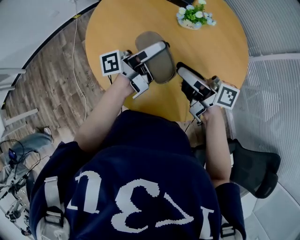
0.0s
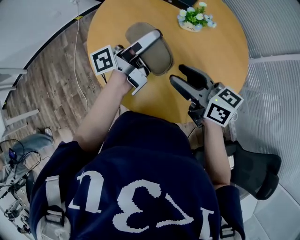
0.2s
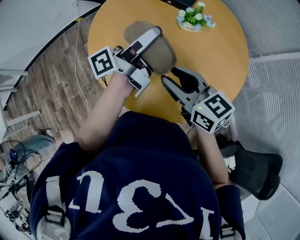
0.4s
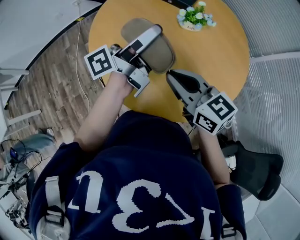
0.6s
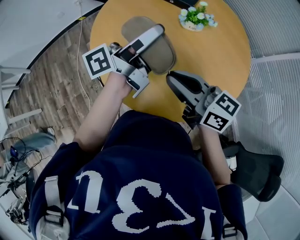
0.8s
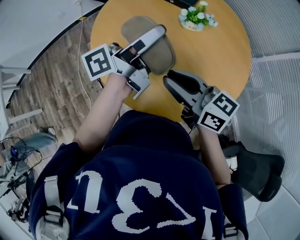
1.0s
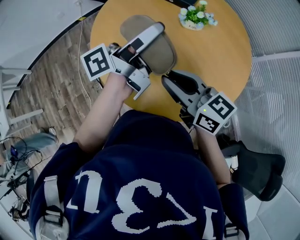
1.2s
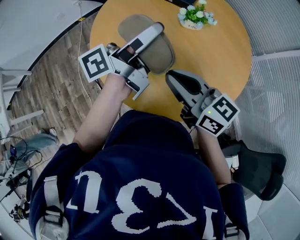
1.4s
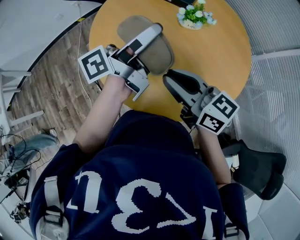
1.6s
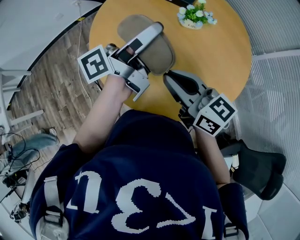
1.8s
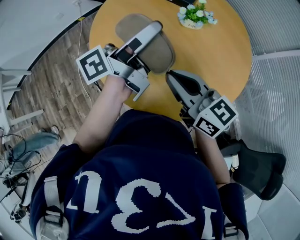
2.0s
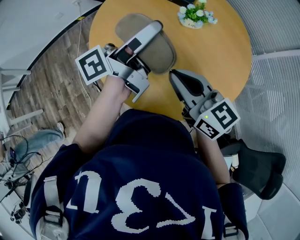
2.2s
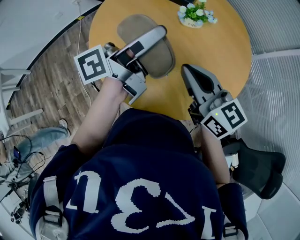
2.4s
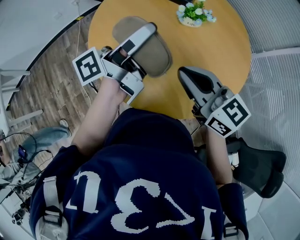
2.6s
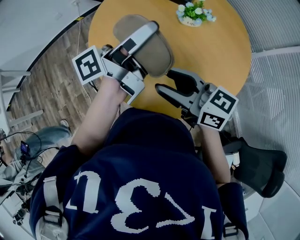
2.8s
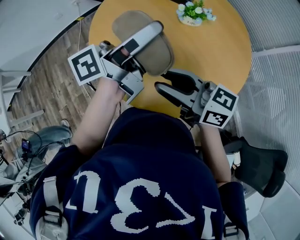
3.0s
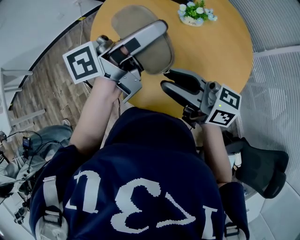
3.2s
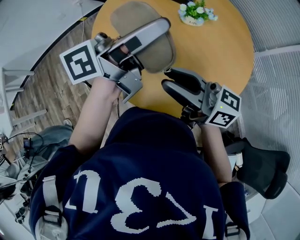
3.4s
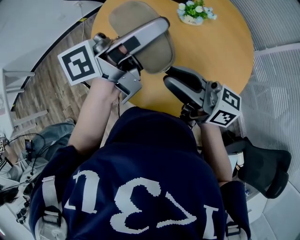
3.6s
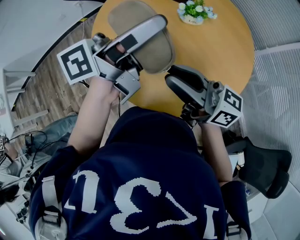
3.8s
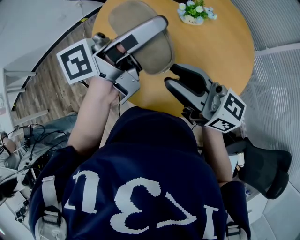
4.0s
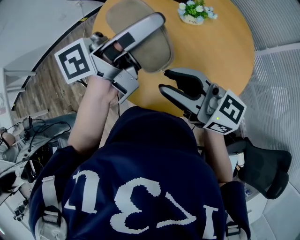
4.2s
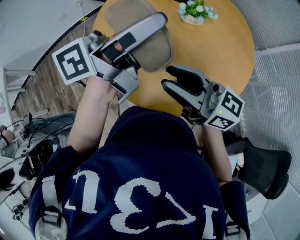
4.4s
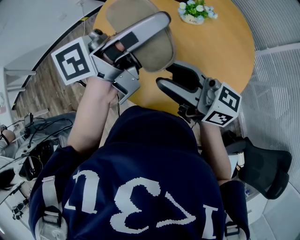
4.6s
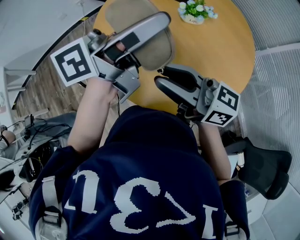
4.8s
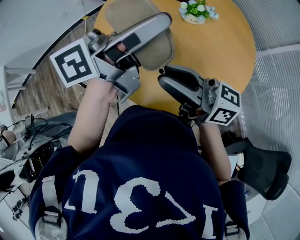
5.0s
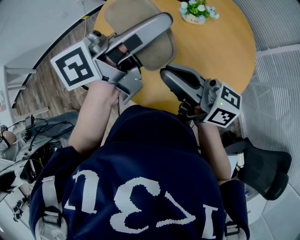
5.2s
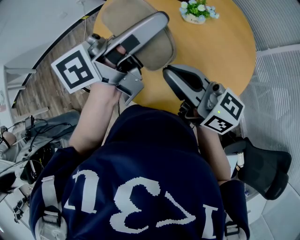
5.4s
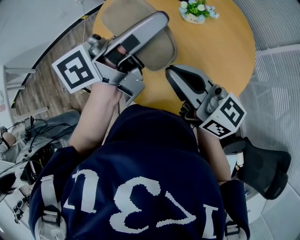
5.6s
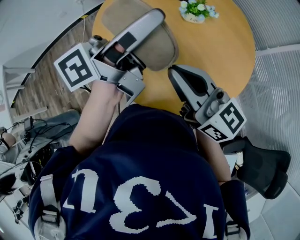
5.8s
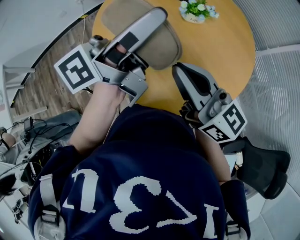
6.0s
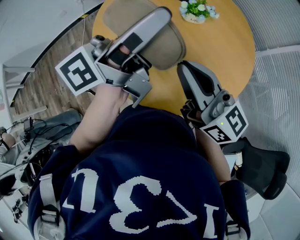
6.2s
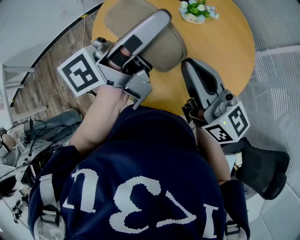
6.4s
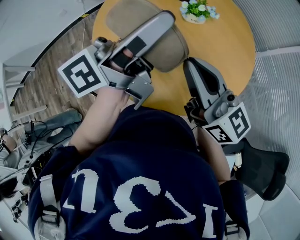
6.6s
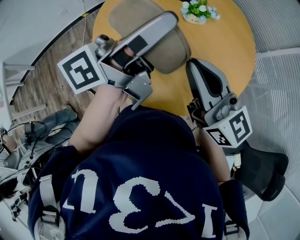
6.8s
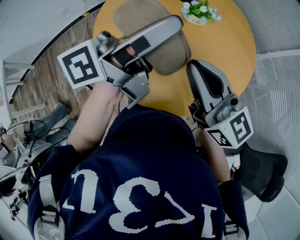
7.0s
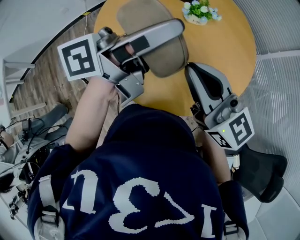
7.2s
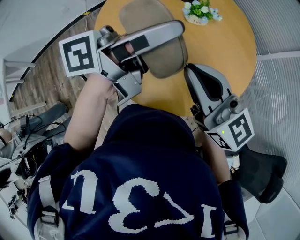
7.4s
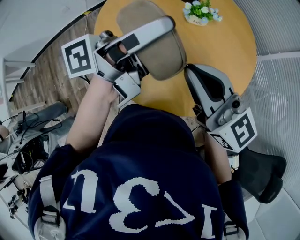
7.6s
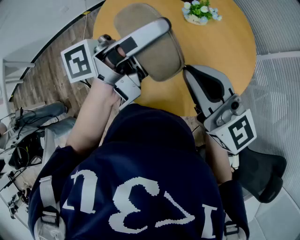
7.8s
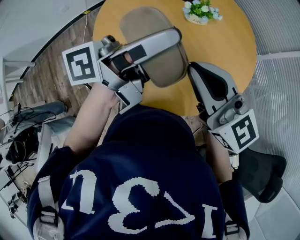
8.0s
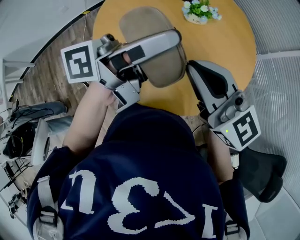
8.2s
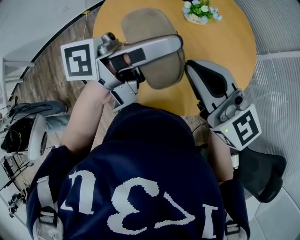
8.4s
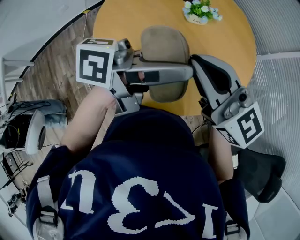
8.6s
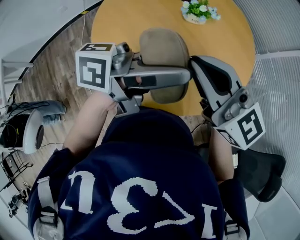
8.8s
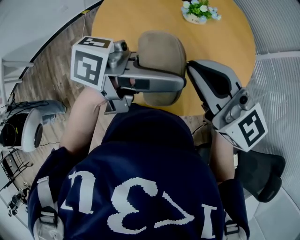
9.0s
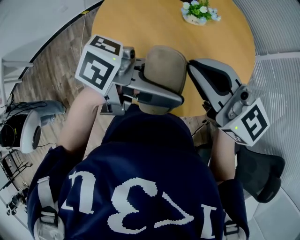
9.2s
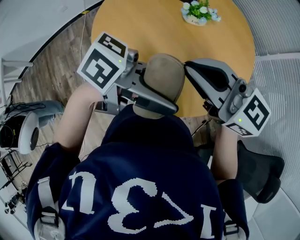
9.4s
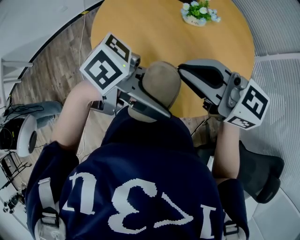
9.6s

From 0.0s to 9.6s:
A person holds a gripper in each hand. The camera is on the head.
From 0.0s to 1.6s: The right gripper changes place by approximately 10 cm, swivels some 40 degrees, and closes its fingers; the left gripper heads upward, covering approximately 10 cm.
From 1.6s to 3.2s: The left gripper ends up roughly 5 cm from where it was.
From 3.2s to 4.8s: The grippers move only a little.
From 4.8s to 6.4s: The right gripper changes place by about 5 cm, rotates roughly 30 degrees, and closes its fingers.
From 6.4s to 8.0s: The right gripper rotates about 20 degrees.
From 8.0s to 9.6s: The right gripper turns by approximately 30 degrees. The left gripper changes place by approximately 15 cm, and swivels approximately 60 degrees.

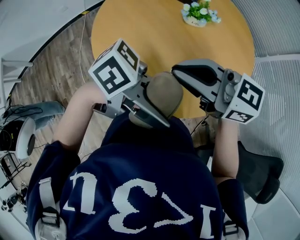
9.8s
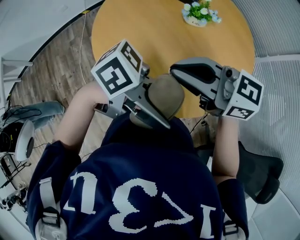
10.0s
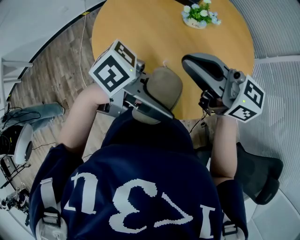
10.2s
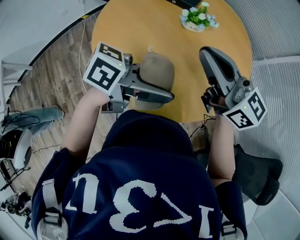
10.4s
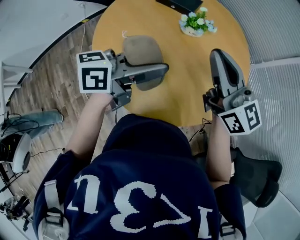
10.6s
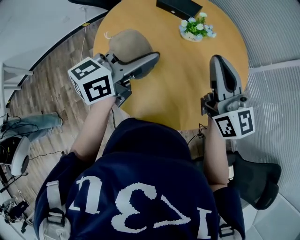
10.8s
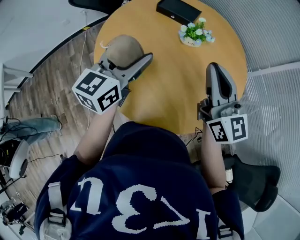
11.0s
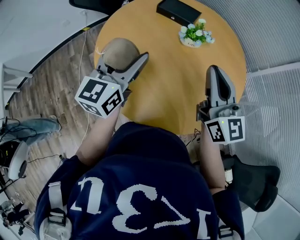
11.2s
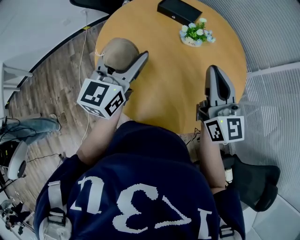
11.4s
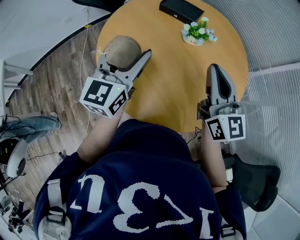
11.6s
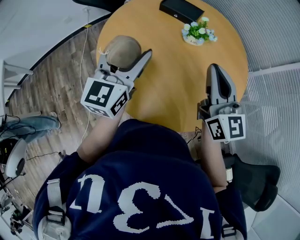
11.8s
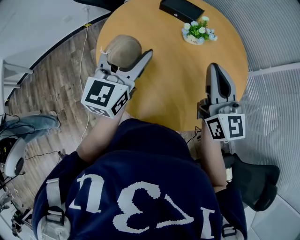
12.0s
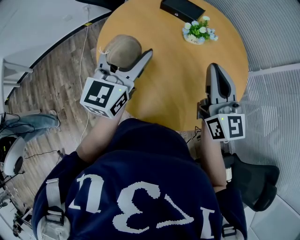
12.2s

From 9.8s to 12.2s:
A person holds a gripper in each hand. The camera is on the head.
From 9.8s to 11.0s: The left gripper shifts by some 25 cm, and rotates approximately 90 degrees. Meanwhile the right gripper shifts by approximately 10 cm, and rotates some 50 degrees.
From 11.0s to 12.2s: The grippers move only a little.

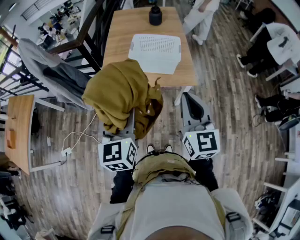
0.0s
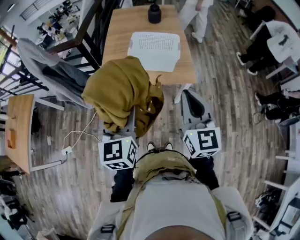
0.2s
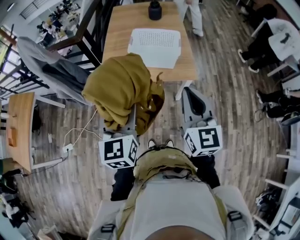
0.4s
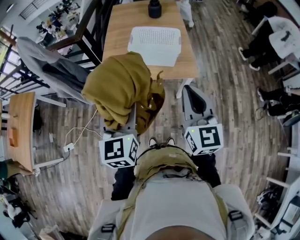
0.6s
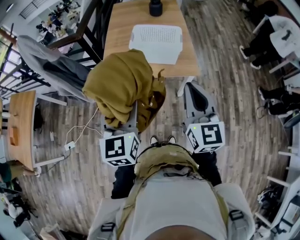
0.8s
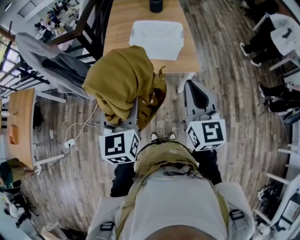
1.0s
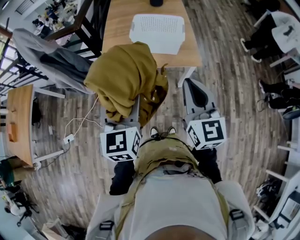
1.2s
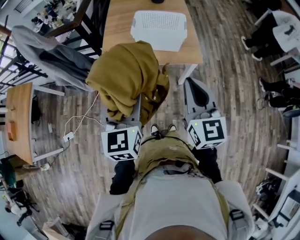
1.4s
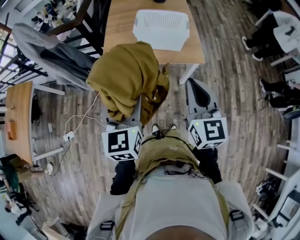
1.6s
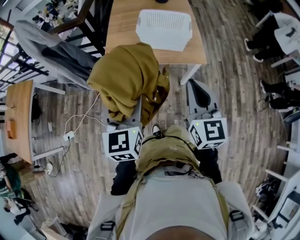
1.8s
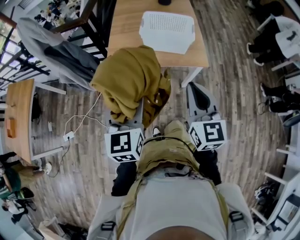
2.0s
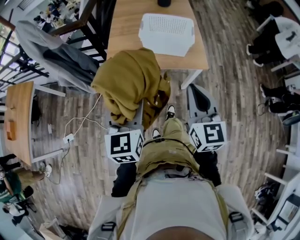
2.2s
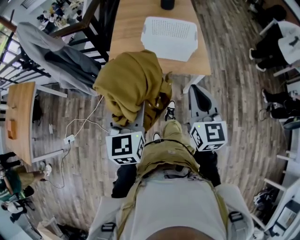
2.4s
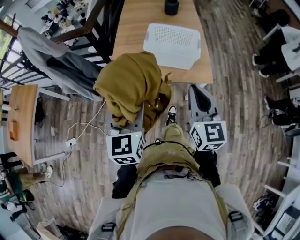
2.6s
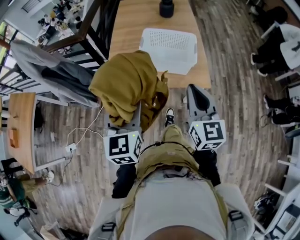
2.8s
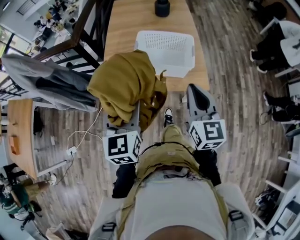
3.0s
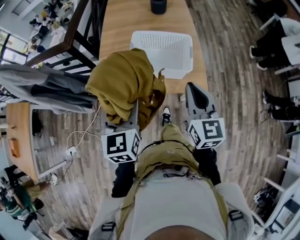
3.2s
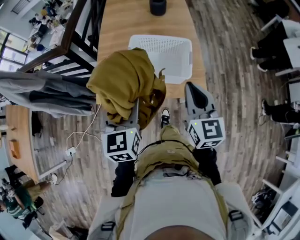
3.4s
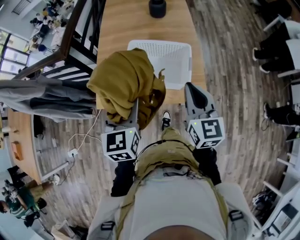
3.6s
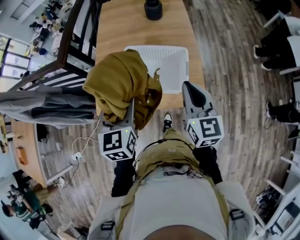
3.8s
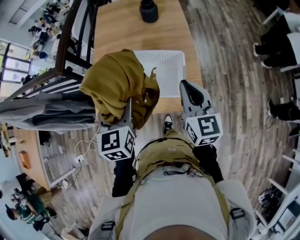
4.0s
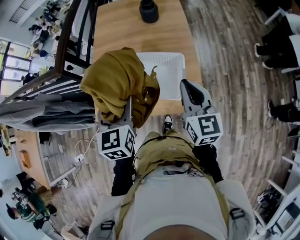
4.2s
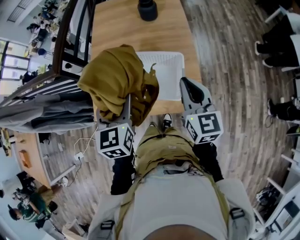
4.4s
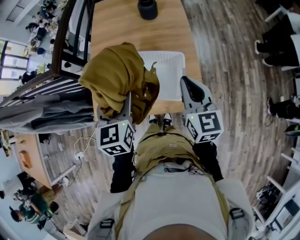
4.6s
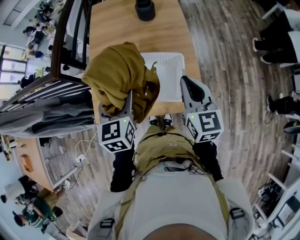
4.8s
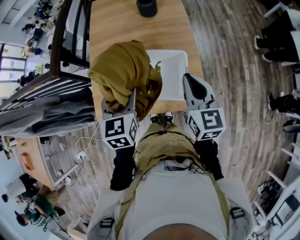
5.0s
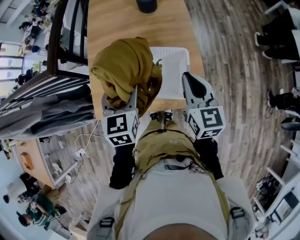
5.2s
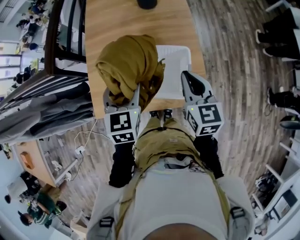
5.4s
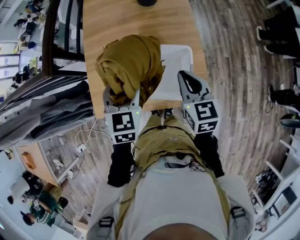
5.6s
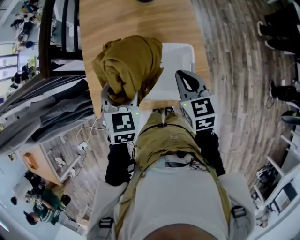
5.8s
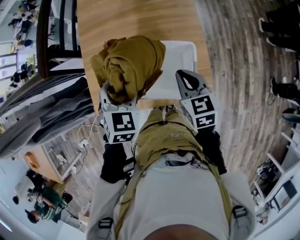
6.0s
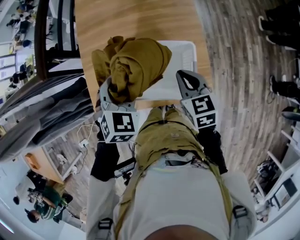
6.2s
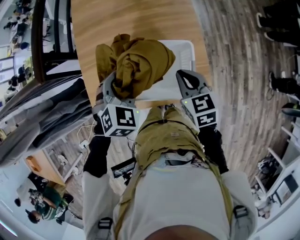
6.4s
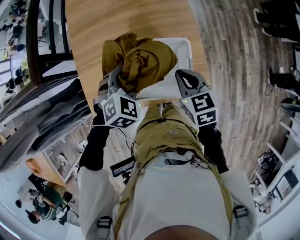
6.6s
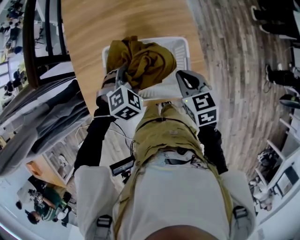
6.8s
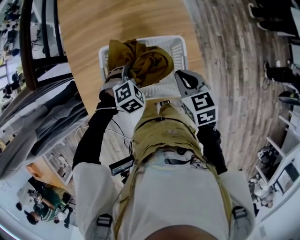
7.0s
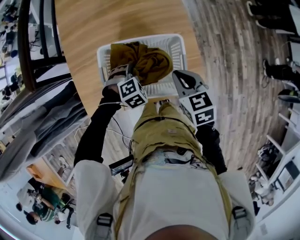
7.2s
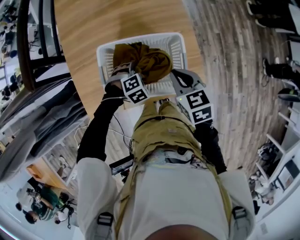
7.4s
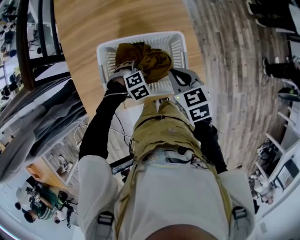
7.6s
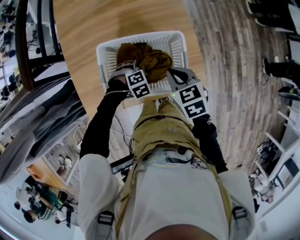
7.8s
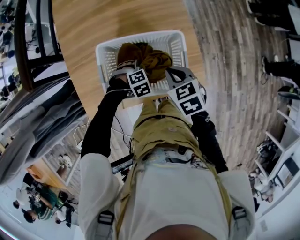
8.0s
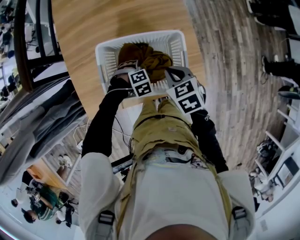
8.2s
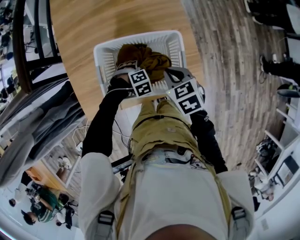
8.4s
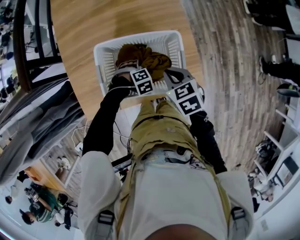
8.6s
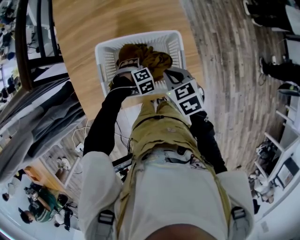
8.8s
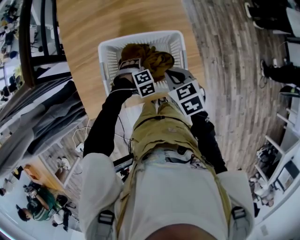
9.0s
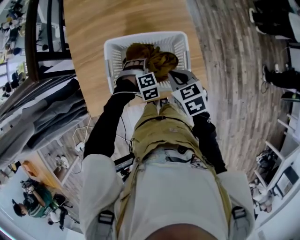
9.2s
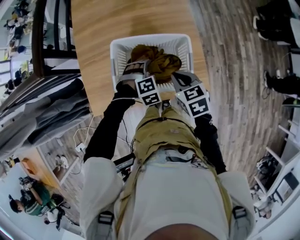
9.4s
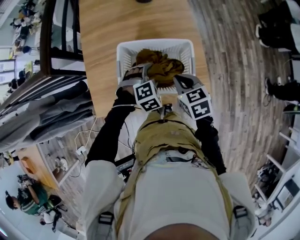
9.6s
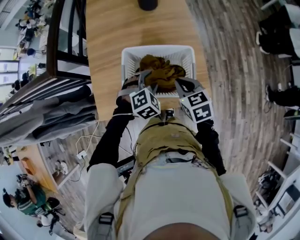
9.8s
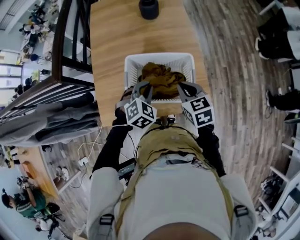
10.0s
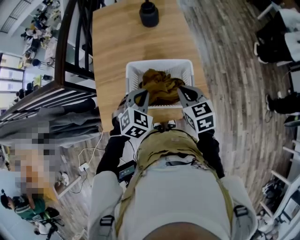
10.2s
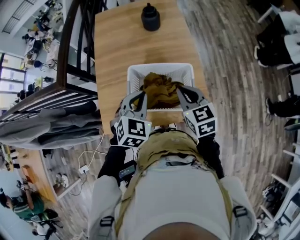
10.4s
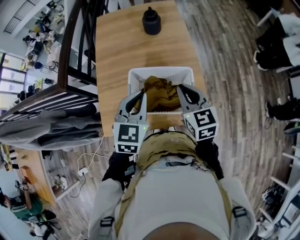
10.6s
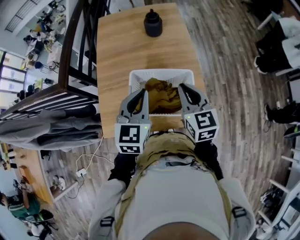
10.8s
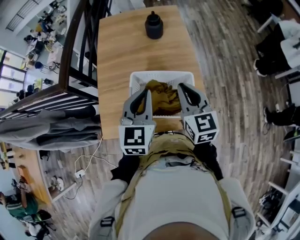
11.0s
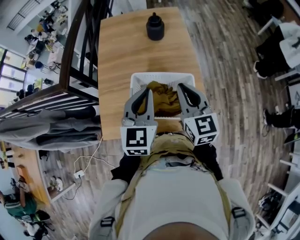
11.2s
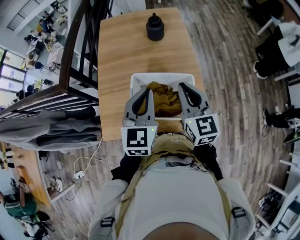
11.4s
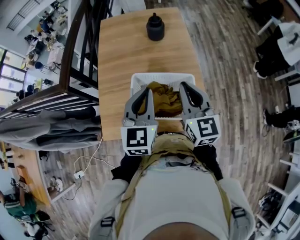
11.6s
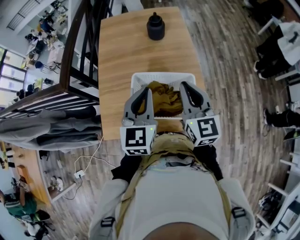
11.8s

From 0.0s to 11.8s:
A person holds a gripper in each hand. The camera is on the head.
From 0.0s to 1.4s: The grippers stay close to where they were, moving slightly.
From 1.4s to 3.0s: The grippers both shift forward by approximately 20 cm.
From 3.0s to 4.4s: Both grippers travel together forward and to the right, approximately 25 cm.
From 4.4s to 6.0s: Both grippers move downward and forward, about 15 cm. The left gripper swivels approximately 30 degrees. Meanwhile the right gripper rotates some 20 degrees.
From 6.0s to 7.4s: The left gripper heads downward, covering about 25 cm, and angles its fingers downward, by about 30 degrees, while the right gripper ends up roughly 5 cm from where it was.
From 7.4s to 8.8s: The left gripper moves downward, about 5 cm.
From 8.8s to 10.4s: The left gripper shifts approximately 30 cm upward, angles its fingers upward, by about 50 degrees, and closes up. The right gripper is displaced upward by about 15 cm, and changes its angle by about 20 degrees.
From 10.4s to 11.8s: Both grippers move upward, some 10 cm. The left gripper rotates roughly 40 degrees, while the right gripper rotates roughly 20 degrees.
